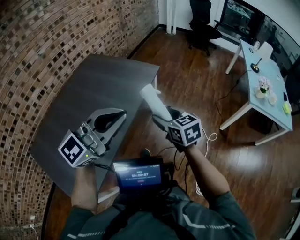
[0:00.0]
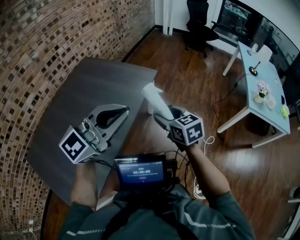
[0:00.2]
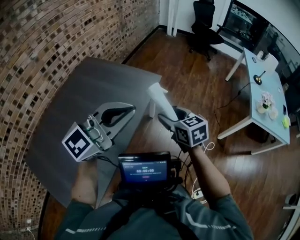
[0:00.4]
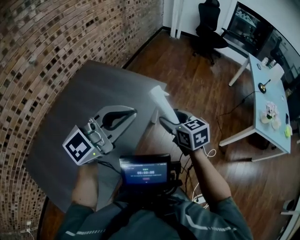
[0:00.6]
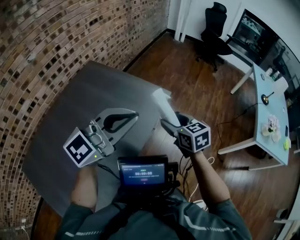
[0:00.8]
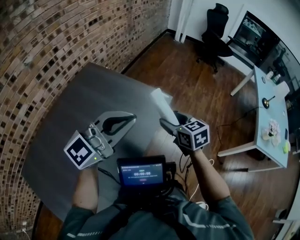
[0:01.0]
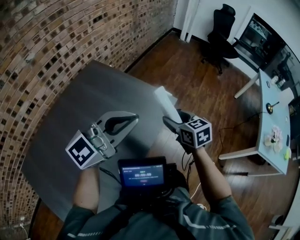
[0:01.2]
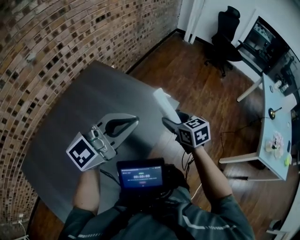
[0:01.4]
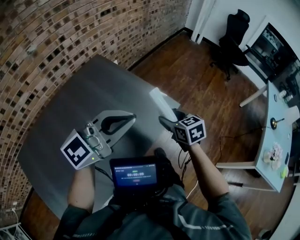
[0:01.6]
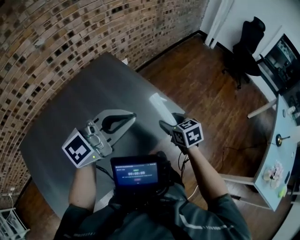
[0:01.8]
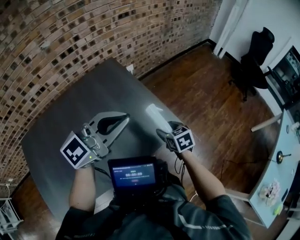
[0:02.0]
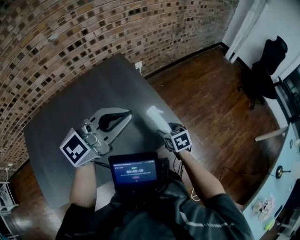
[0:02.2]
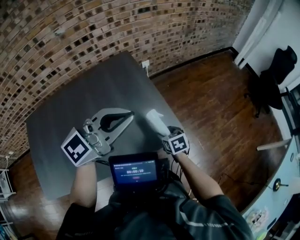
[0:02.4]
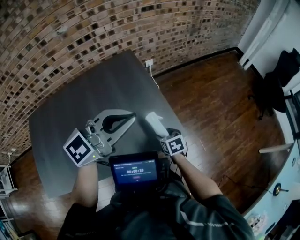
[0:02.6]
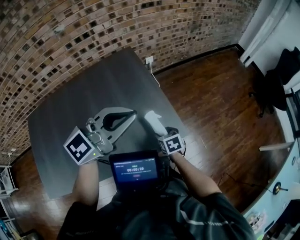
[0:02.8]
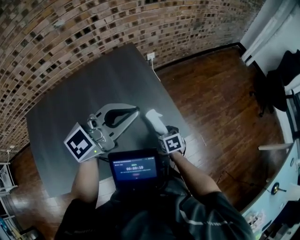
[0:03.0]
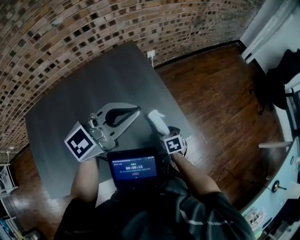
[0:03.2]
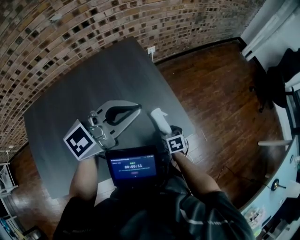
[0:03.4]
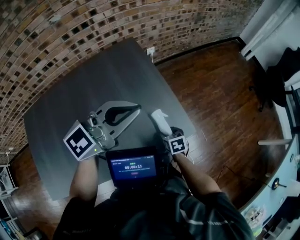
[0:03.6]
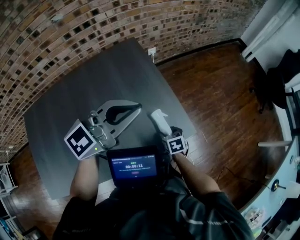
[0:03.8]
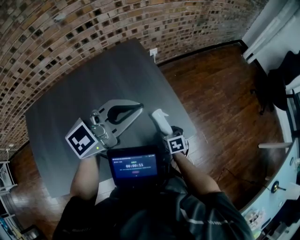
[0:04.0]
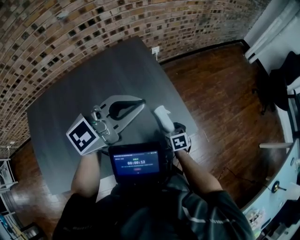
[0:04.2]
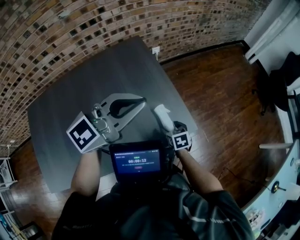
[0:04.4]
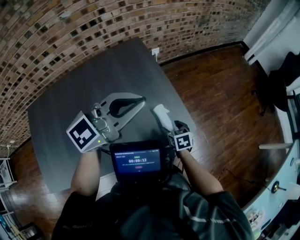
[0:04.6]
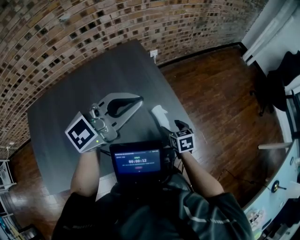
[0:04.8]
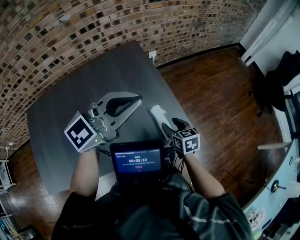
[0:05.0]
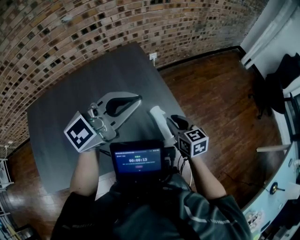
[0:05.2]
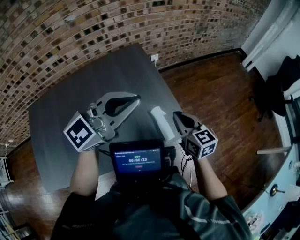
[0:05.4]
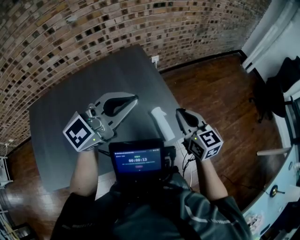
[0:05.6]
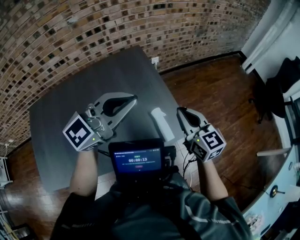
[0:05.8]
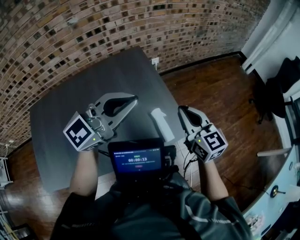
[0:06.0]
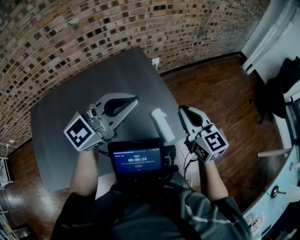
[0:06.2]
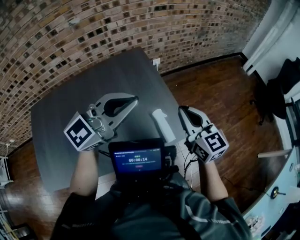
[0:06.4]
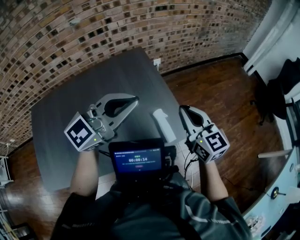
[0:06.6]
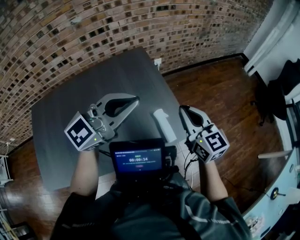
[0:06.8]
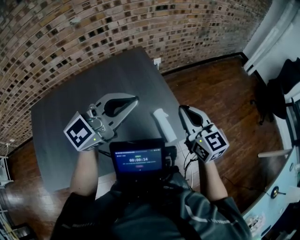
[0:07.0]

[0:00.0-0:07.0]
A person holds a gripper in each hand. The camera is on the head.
0:00.0 to 0:01.4: The two grippers go some 30 cm forward.
0:01.4 to 0:02.8: The left gripper ends up approximately 15 cm from where it was, and changes its angle by roughly 30 degrees, while the right gripper shifts roughly 20 cm downward, and turns by about 30 degrees.
0:02.8 to 0:04.2: The grippers move only a little.
0:04.2 to 0:05.6: The right gripper moves upward, approximately 30 cm, points its fingers about 40 degrees further upward, and closes.
0:05.6 to 0:07.0: The grippers move only a little.

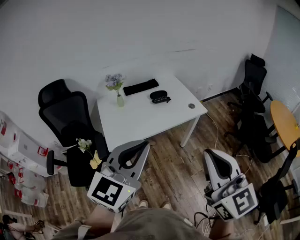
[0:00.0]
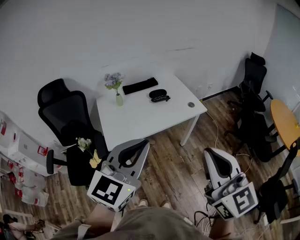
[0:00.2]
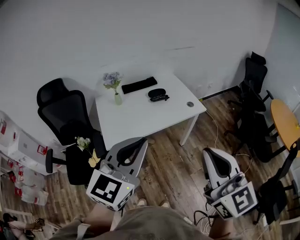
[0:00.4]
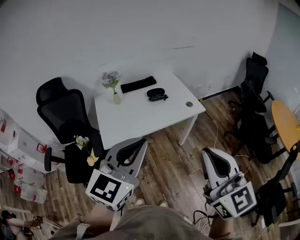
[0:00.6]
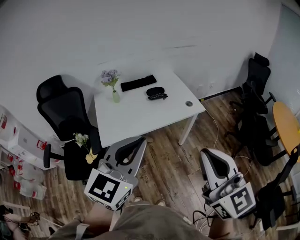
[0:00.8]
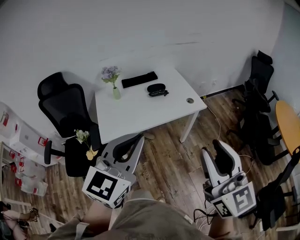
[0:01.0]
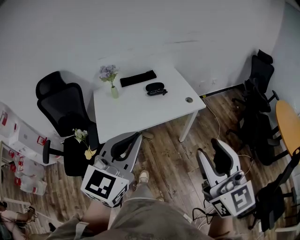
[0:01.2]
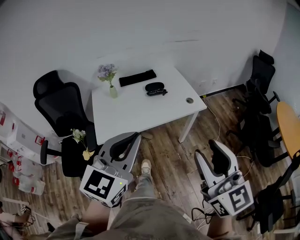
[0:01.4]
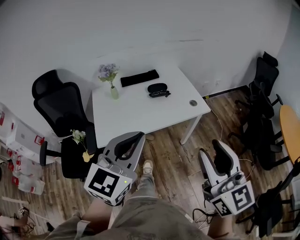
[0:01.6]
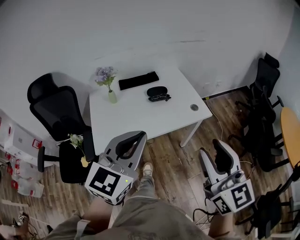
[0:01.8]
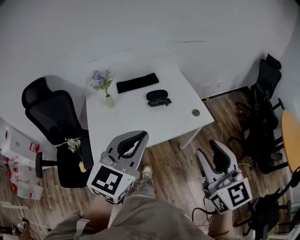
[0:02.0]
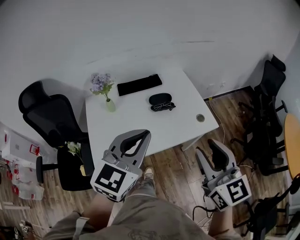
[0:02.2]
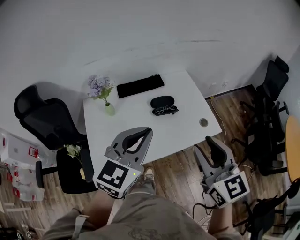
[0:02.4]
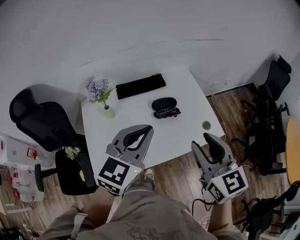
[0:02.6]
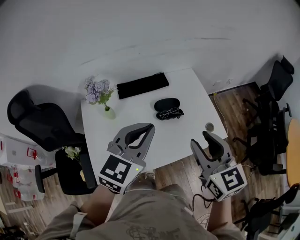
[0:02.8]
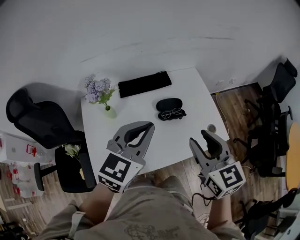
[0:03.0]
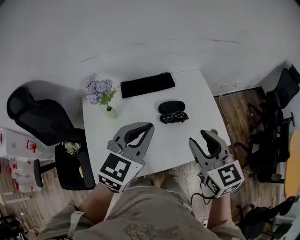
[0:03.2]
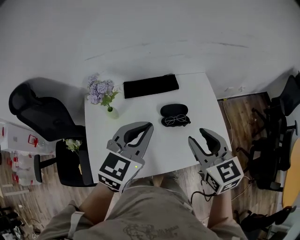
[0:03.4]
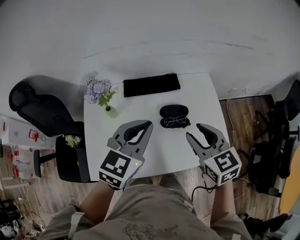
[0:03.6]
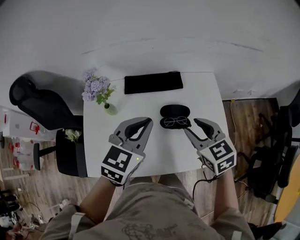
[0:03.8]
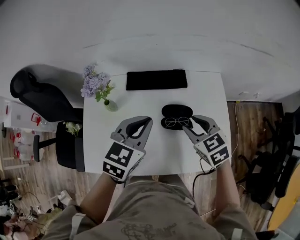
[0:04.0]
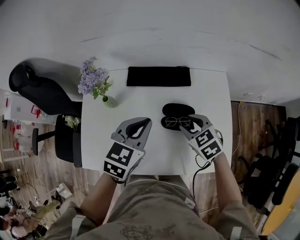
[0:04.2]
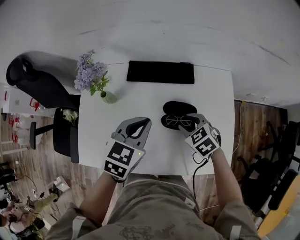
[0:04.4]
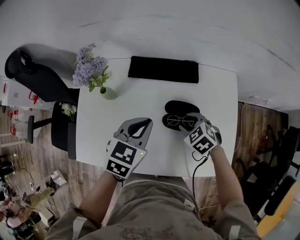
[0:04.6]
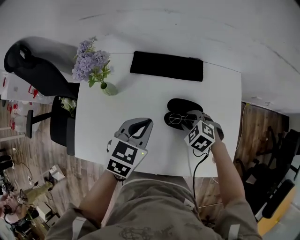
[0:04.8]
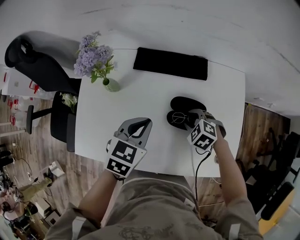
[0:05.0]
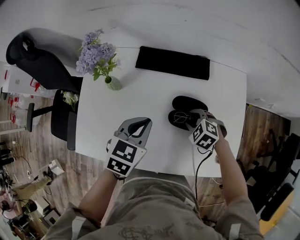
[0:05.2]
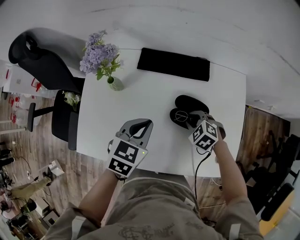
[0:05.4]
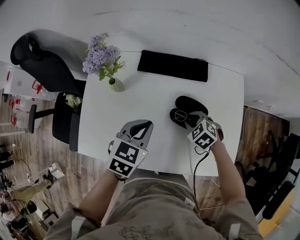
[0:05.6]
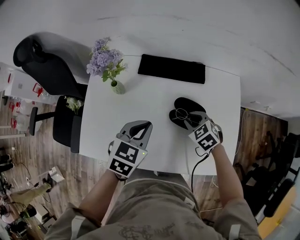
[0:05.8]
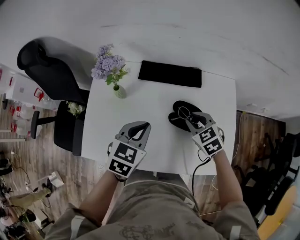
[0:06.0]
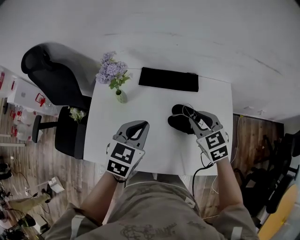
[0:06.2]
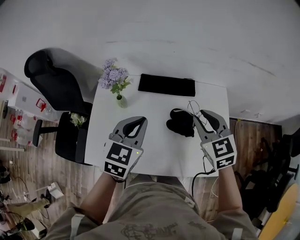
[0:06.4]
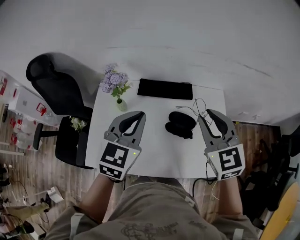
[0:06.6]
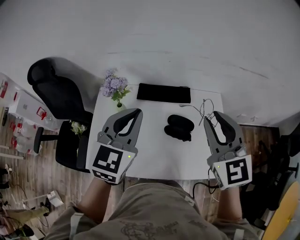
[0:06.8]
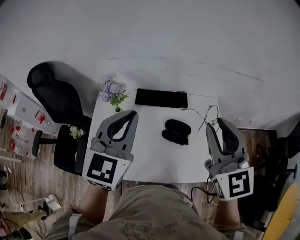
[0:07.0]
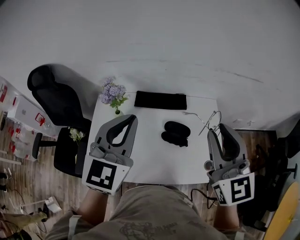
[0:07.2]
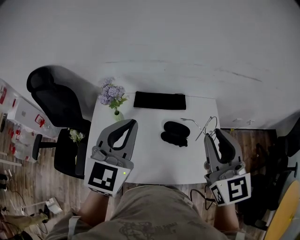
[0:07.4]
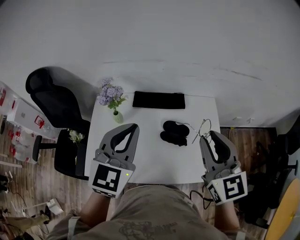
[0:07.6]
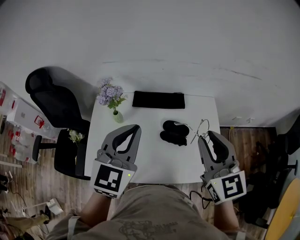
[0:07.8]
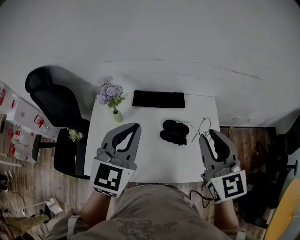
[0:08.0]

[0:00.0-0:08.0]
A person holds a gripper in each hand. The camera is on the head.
0:00.0 to 0:01.6: The right gripper goes some 15 cm forward and to the right, and opens up, while the left gripper goes approximately 10 cm forward, to the right and downward.
0:01.6 to 0:03.2: Both grippers move forward, approximately 40 cm. The right gripper changes its angle by approximately 30 degrees.
0:03.2 to 0:04.8: The left gripper goes about 20 cm downward, and rotates about 30 degrees, while the right gripper moves downward, some 30 cm, and tilts its fingers approximately 40 degrees downward.
0:04.8 to 0:06.4: The left gripper goes some 15 cm upward. Meanwhile the right gripper travels upward by about 25 cm, and tips its fingers upward by approximately 40 degrees.
0:06.4 to 0:08.0: The left gripper shifts some 10 cm upward. The right gripper travels upward and backward by roughly 15 cm, and swivels approximately 20 degrees.

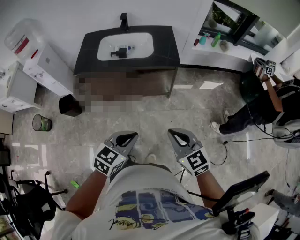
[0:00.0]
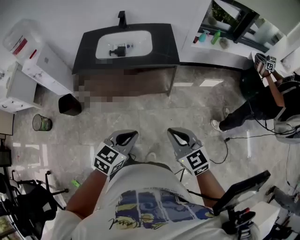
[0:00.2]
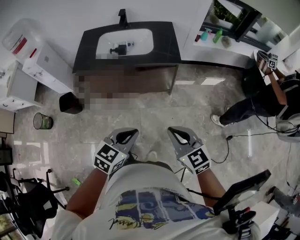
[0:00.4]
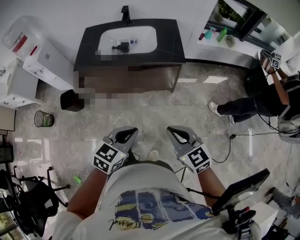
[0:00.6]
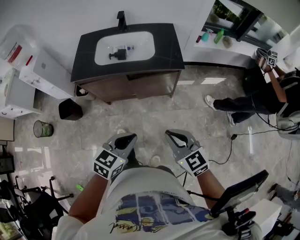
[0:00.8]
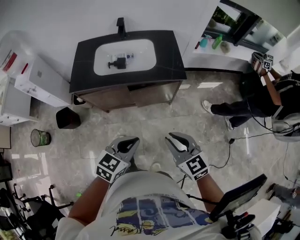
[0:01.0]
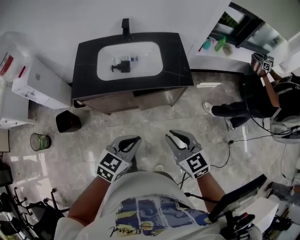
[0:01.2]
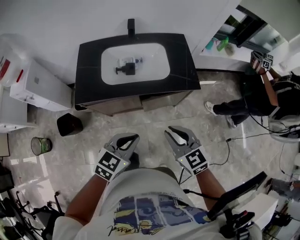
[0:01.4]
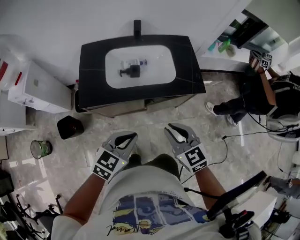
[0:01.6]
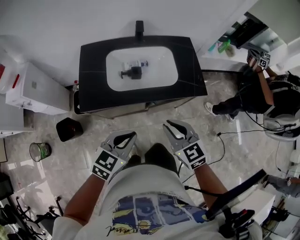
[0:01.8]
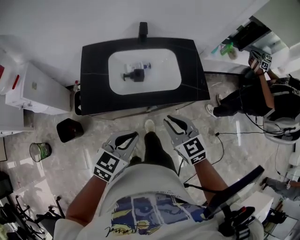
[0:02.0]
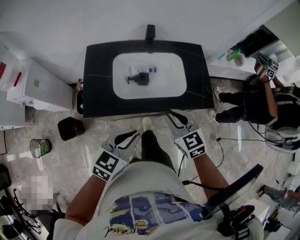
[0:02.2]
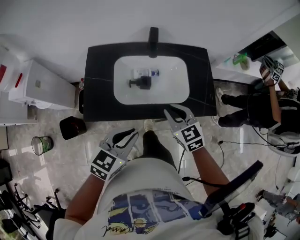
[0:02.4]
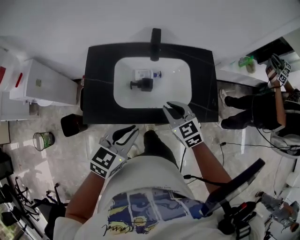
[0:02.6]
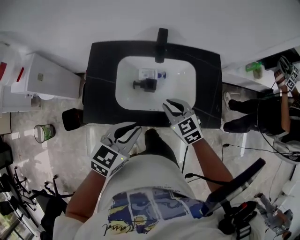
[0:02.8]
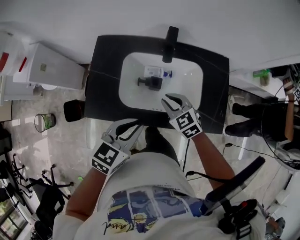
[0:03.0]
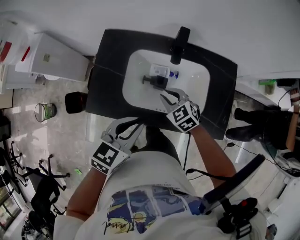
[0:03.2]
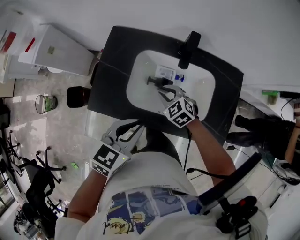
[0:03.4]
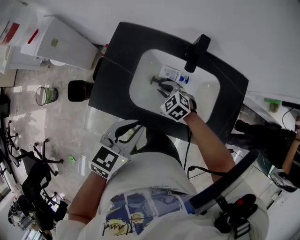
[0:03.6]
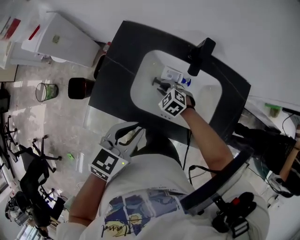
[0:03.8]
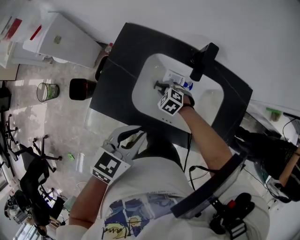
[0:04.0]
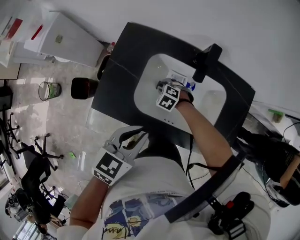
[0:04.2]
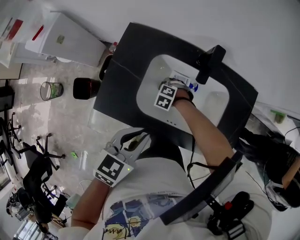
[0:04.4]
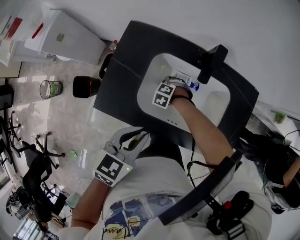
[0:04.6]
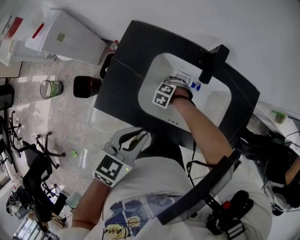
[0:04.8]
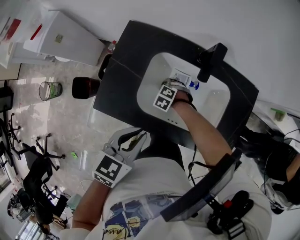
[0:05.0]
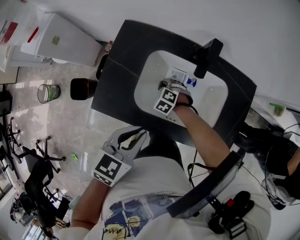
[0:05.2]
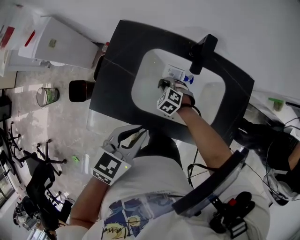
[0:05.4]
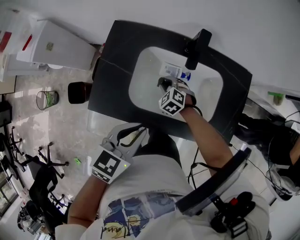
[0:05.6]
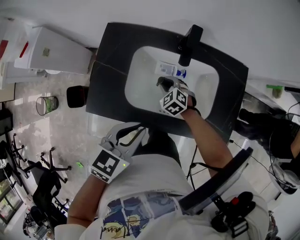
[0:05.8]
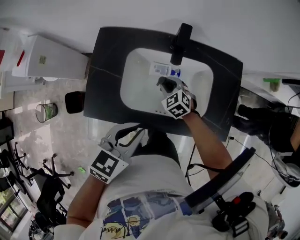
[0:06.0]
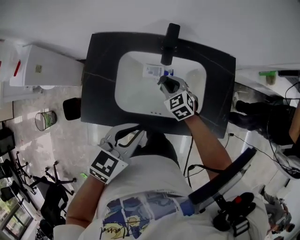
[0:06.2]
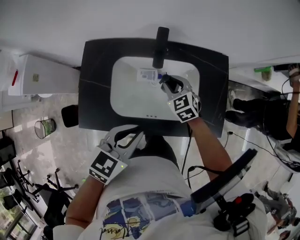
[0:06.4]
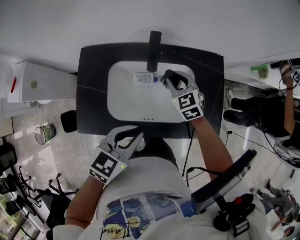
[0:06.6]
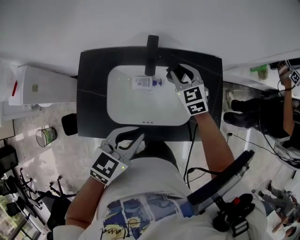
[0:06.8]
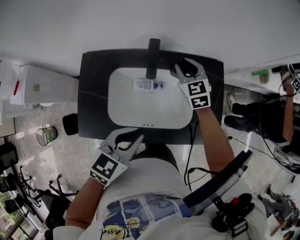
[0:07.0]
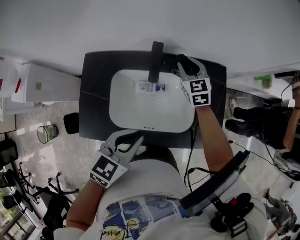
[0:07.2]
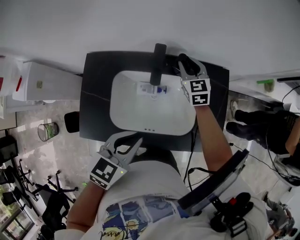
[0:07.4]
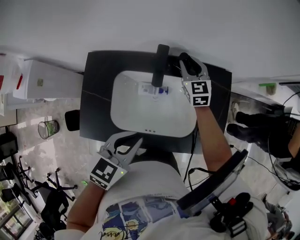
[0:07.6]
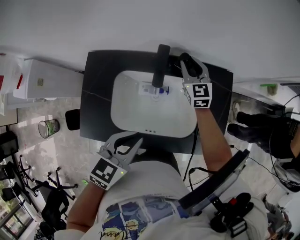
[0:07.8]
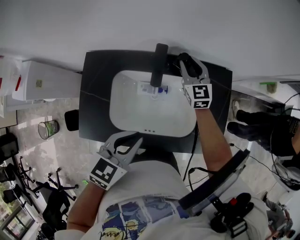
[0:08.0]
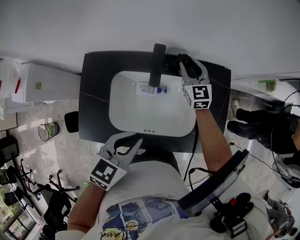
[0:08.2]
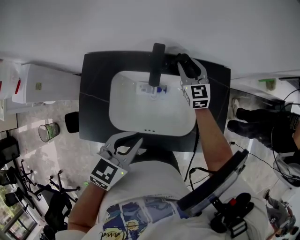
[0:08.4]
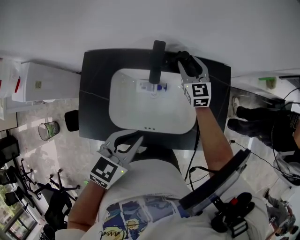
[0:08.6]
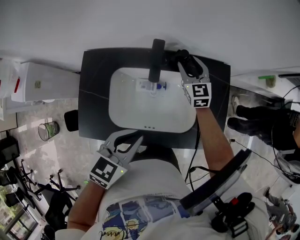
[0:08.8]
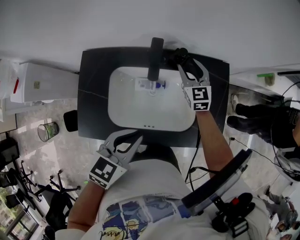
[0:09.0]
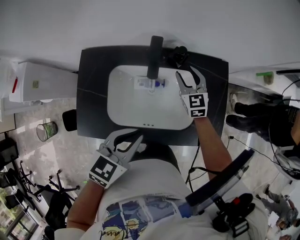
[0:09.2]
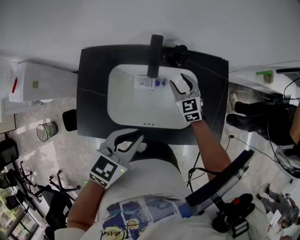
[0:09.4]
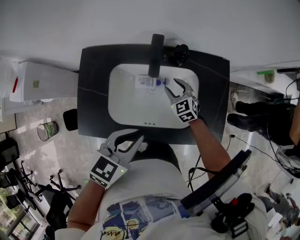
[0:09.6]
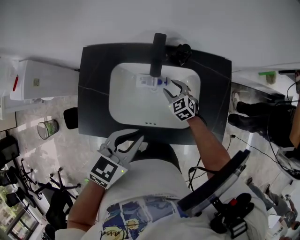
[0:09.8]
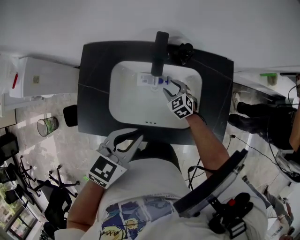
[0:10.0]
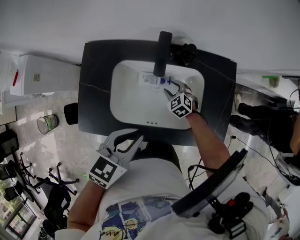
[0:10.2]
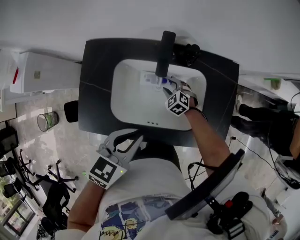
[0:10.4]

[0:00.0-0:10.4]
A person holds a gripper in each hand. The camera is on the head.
0:00.0 to 0:01.4: The two grippers go about 25 cm forward and to the left.
0:01.4 to 0:03.0: Both grippers travel together forward, about 30 cm. The right gripper turns by roughly 20 degrees.
0:03.0 to 0:04.4: The left gripper shifts by some 5 cm. Meanwhile the right gripper heads downward, covering roughly 25 cm, and angles its fingers downward, by roughly 40 degrees.
0:04.4 to 0:06.0: The right gripper shifts approximately 10 cm upward, and changes its angle by some 40 degrees.
0:06.0 to 0:07.4: The left gripper heads forward, covering approximately 5 cm; the right gripper shifts some 25 cm forward, upward and to the right, and swivels approximately 40 degrees.
0:07.4 to 0:09.0: The grippers stay close to where they were, moving slightly.
0:09.0 to 0:10.4: The right gripper heads downward and backward, covering roughly 25 cm, and tips its fingers downward by roughly 30 degrees.
